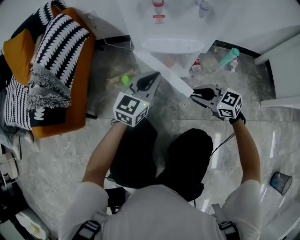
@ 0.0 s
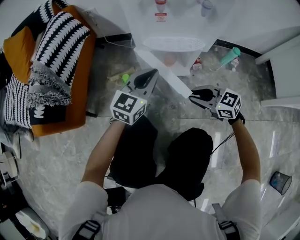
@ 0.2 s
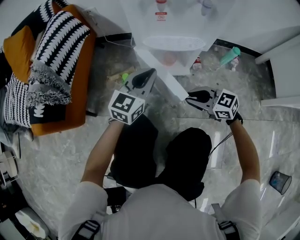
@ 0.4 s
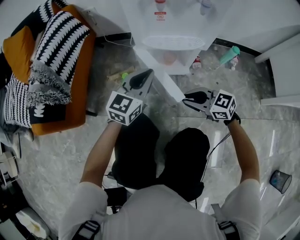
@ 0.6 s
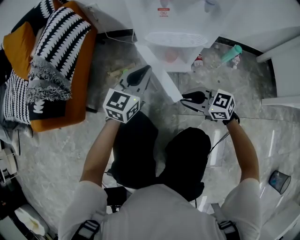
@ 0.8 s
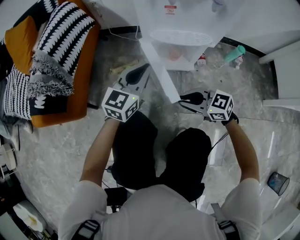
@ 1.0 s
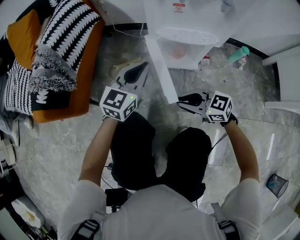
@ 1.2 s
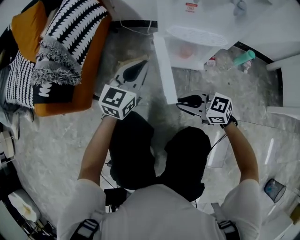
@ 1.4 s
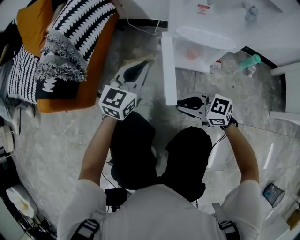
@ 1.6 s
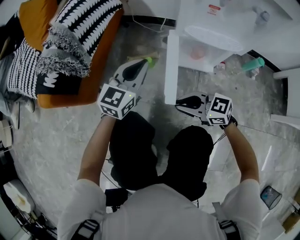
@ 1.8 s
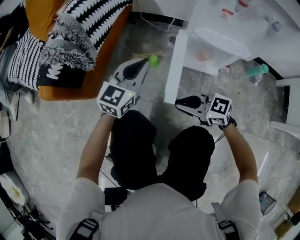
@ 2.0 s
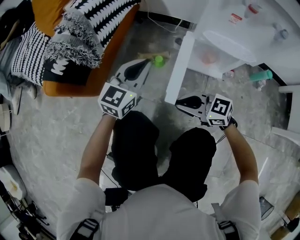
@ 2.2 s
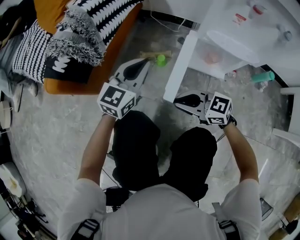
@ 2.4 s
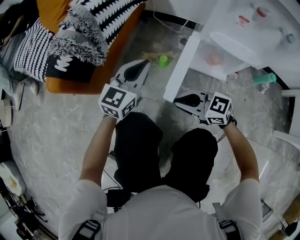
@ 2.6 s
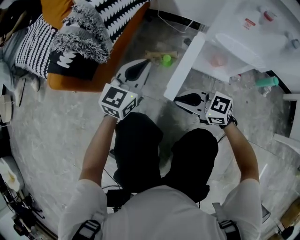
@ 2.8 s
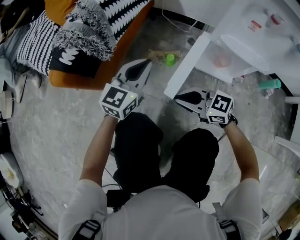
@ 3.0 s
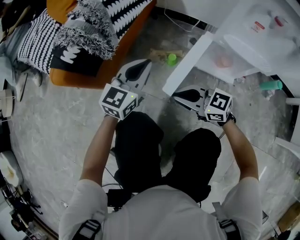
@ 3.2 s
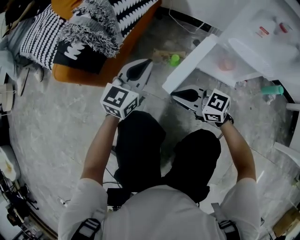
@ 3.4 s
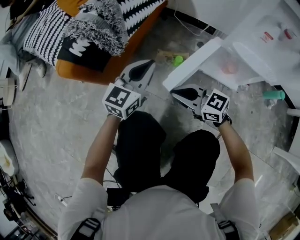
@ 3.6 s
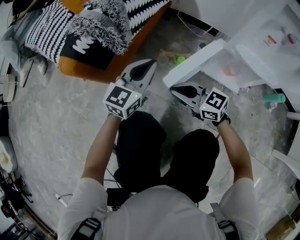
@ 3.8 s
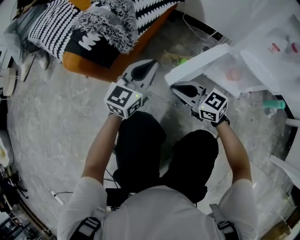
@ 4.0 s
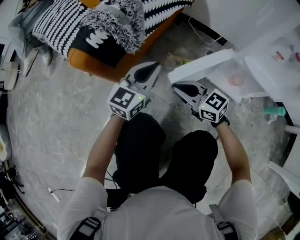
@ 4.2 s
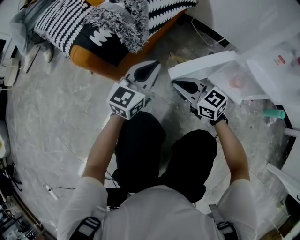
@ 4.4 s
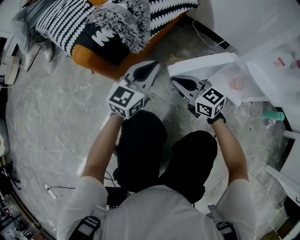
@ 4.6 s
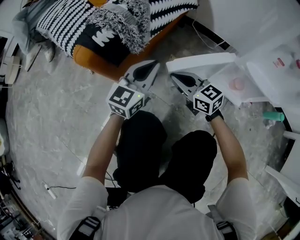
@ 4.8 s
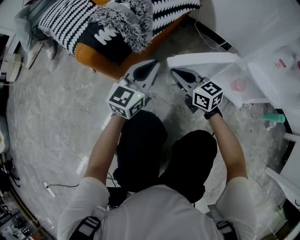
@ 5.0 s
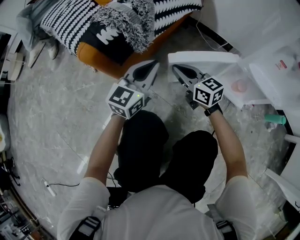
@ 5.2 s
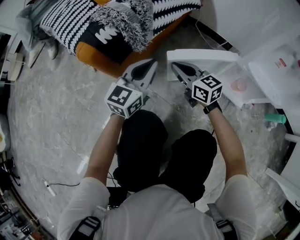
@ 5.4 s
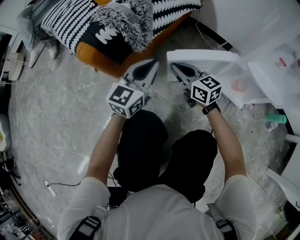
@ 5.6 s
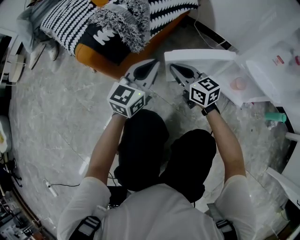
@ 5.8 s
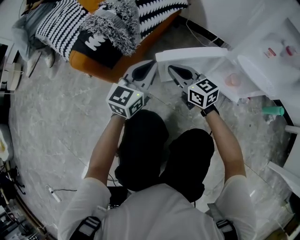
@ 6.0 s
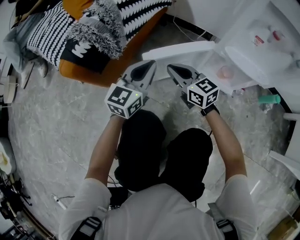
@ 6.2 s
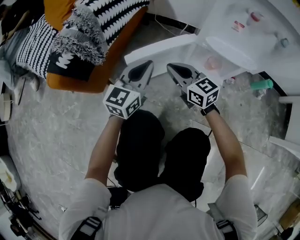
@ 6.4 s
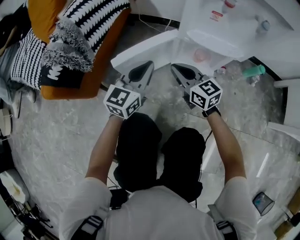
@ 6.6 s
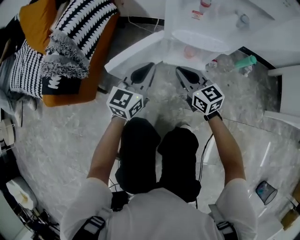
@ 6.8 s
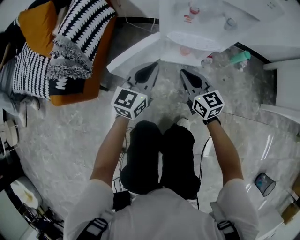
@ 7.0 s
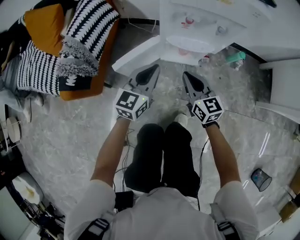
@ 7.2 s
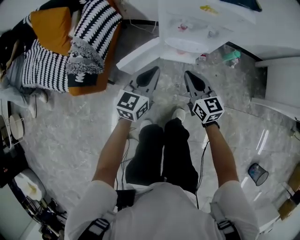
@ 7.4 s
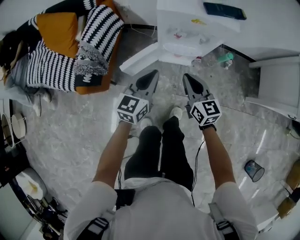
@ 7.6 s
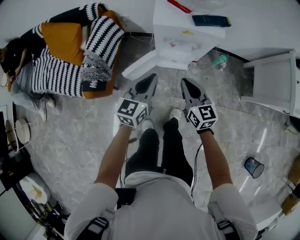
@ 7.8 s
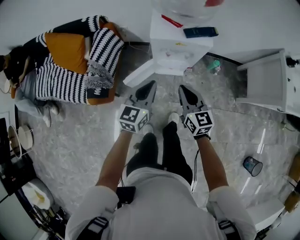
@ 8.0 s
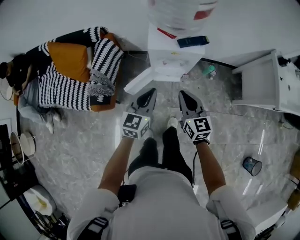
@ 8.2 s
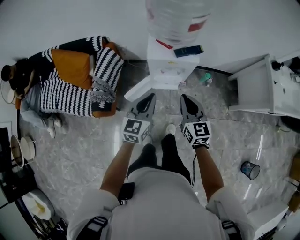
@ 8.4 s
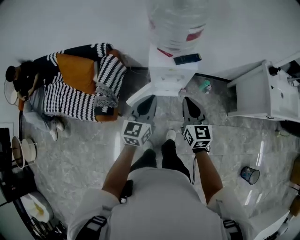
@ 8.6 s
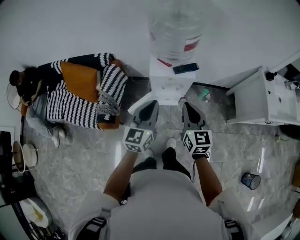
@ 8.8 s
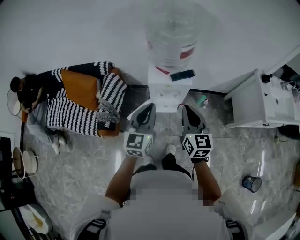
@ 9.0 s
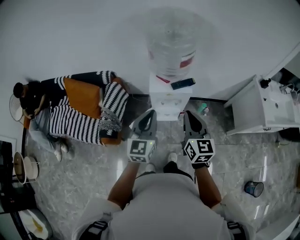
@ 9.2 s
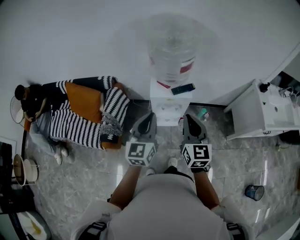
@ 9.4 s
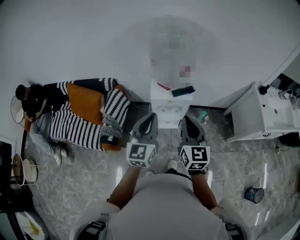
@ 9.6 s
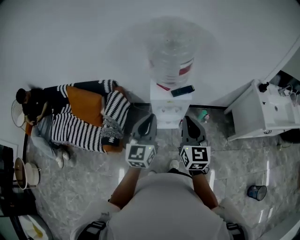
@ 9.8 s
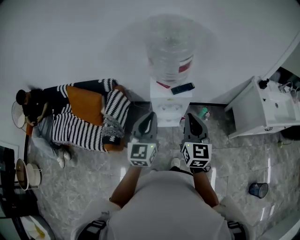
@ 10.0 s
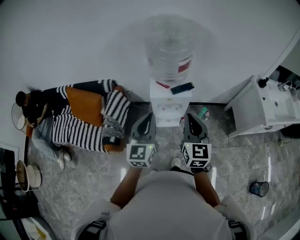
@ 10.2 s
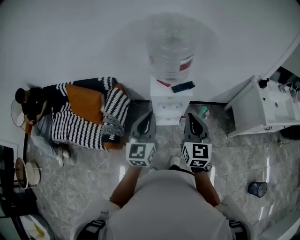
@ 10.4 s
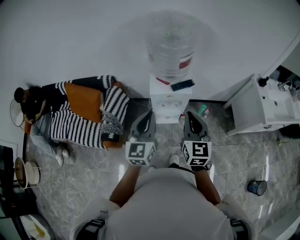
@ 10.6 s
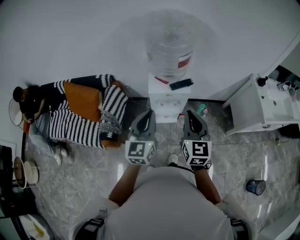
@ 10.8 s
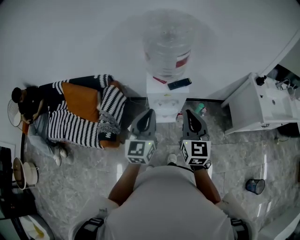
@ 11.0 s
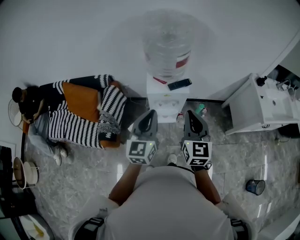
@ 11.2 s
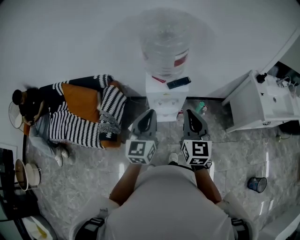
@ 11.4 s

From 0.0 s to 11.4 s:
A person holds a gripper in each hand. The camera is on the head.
From 0.0 s to 1.4 s: Both grippers travel together to the left, roughly 15 cm.
From 1.4 s to 2.8 s: The left gripper travels to the left by roughly 10 cm; the right gripper heads to the left and forward, covering roughly 10 cm.
From 2.8 s to 4.2 s: The left gripper travels to the left by roughly 5 cm. Meanwhile the right gripper travels forward and to the left by roughly 10 cm.
From 4.2 s to 5.6 s: The right gripper moves forward, about 10 cm.
From 5.6 s to 7.2 s: The left gripper shifts by approximately 30 cm, and changes its angle by some 30 degrees, while the right gripper changes place by roughly 35 cm, and turns by roughly 40 degrees.
From 7.2 s to 8.6 s: Both grippers travel together upward, about 50 cm. The right gripper rotates about 20 degrees.
From 8.6 s to 10.0 s: The grippers both shift upward by approximately 10 cm.
From 10.0 s to 11.4 s: The grippers move only a little.

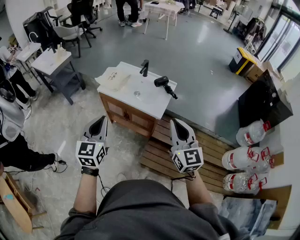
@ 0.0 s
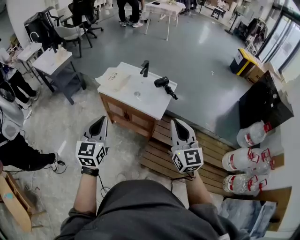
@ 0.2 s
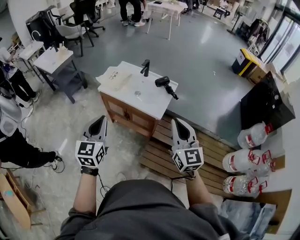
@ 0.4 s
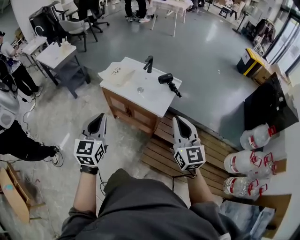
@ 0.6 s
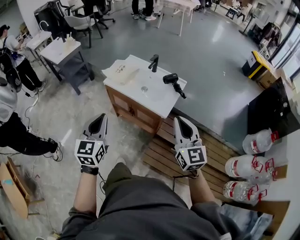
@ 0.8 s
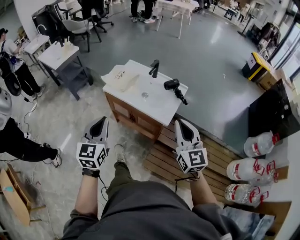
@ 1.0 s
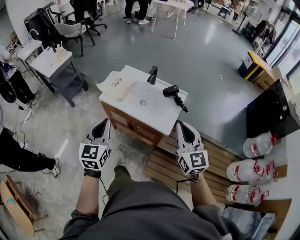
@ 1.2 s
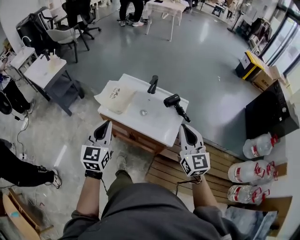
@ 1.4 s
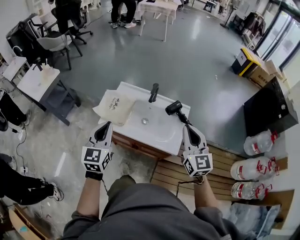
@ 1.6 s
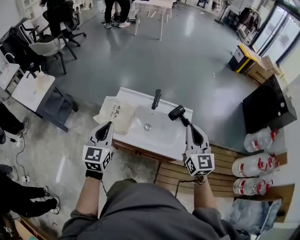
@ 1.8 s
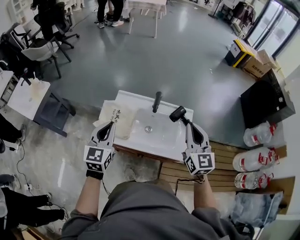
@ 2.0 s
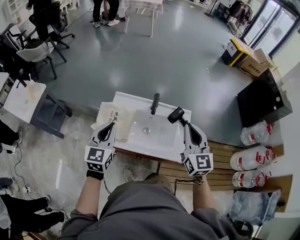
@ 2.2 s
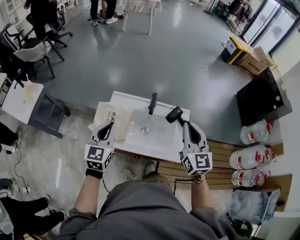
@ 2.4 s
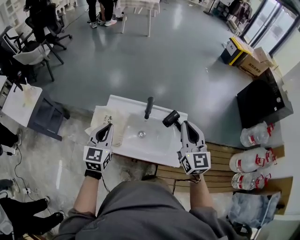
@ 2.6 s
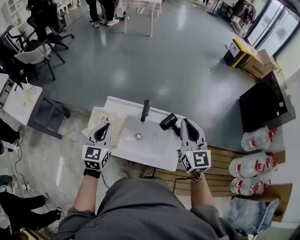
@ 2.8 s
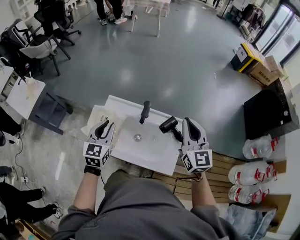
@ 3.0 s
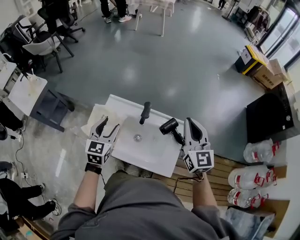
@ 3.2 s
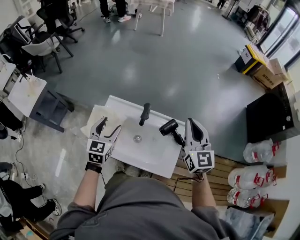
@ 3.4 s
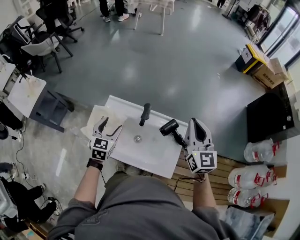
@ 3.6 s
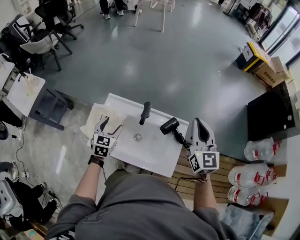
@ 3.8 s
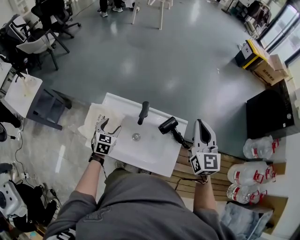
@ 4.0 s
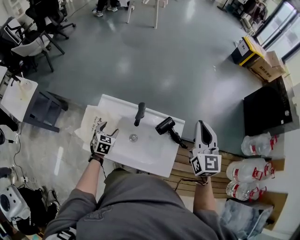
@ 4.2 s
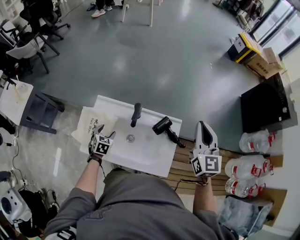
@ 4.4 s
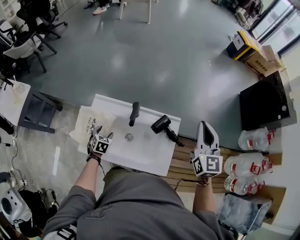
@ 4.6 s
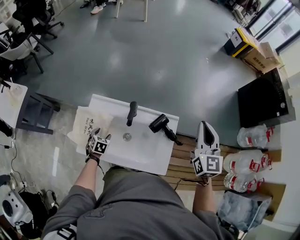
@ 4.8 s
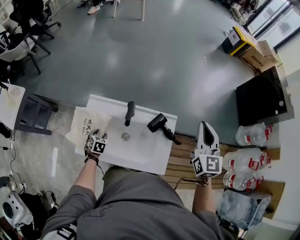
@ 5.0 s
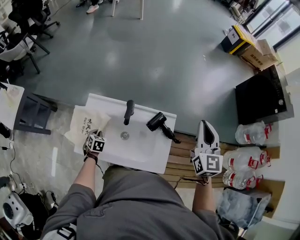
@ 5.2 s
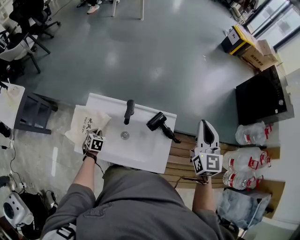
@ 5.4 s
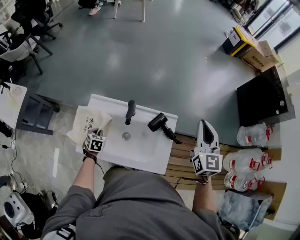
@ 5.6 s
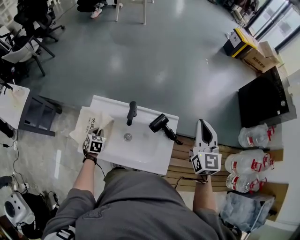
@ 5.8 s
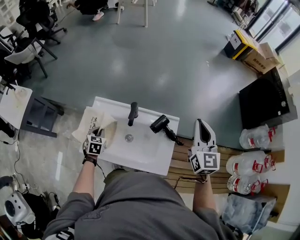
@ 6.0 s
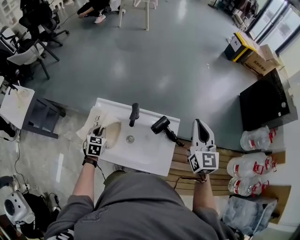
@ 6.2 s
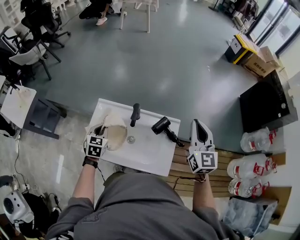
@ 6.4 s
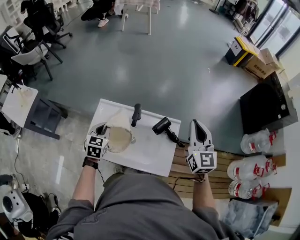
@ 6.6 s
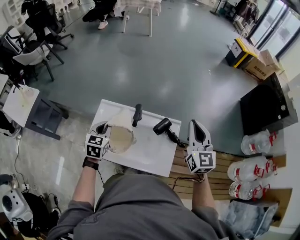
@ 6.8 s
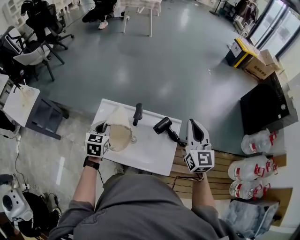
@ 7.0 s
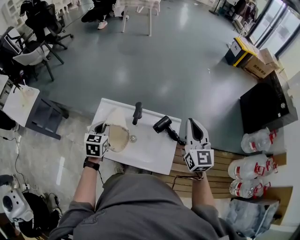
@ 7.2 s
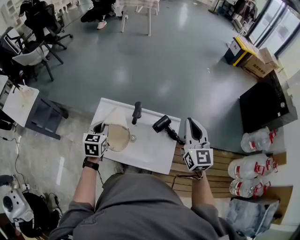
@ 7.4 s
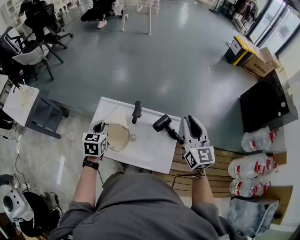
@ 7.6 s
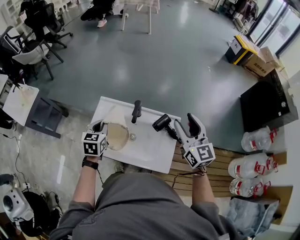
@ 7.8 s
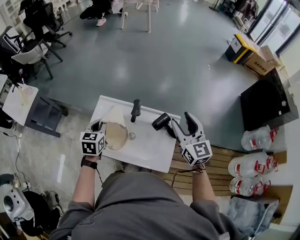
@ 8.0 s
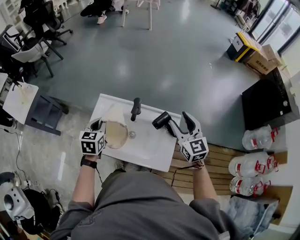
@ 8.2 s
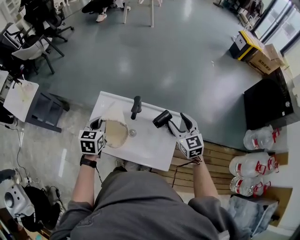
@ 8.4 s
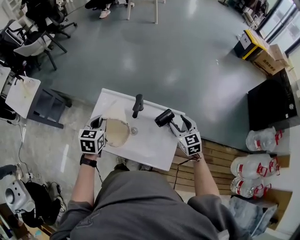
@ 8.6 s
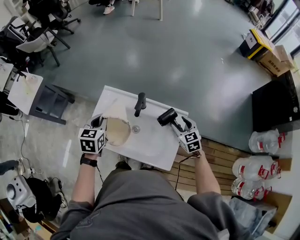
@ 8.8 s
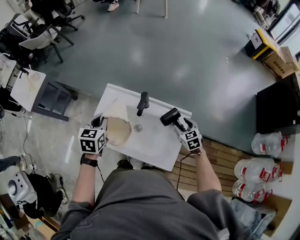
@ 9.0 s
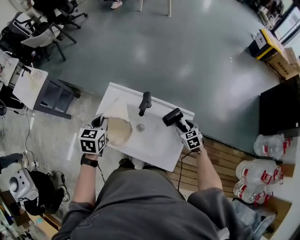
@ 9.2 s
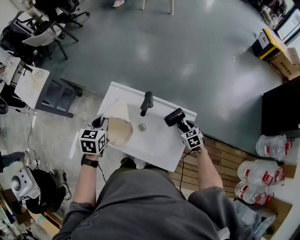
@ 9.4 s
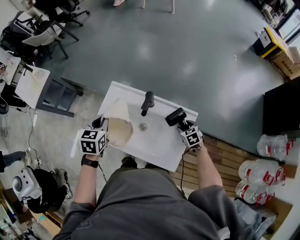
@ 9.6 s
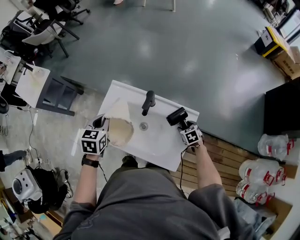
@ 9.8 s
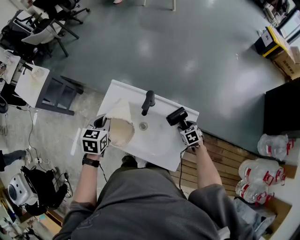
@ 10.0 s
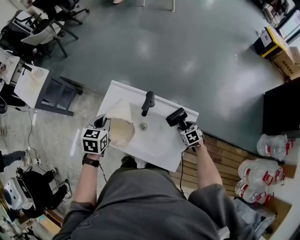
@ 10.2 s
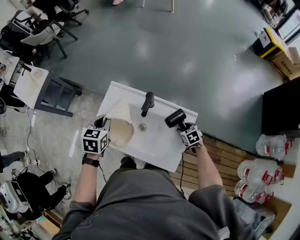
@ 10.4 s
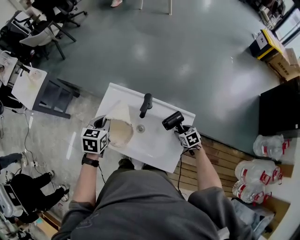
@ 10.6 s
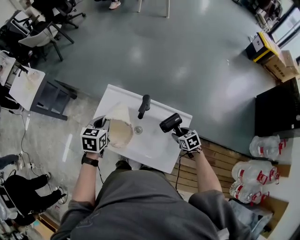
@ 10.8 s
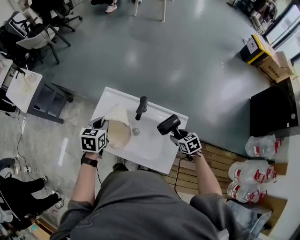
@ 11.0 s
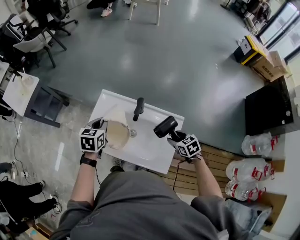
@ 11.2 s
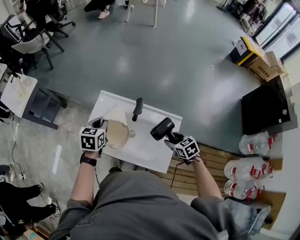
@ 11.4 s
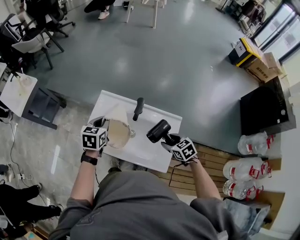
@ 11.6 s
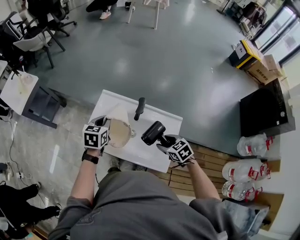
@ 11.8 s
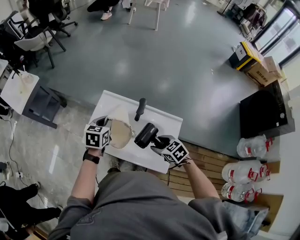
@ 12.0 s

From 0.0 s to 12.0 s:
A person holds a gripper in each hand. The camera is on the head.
From 0.0 s to 1.6 s: Both grippers move forward, some 30 cm.
From 1.6 s to 3.0 s: The two grippers go approximately 20 cm forward.
From 3.0 s to 4.4 s: The left gripper moves downward, some 25 cm, angles its fingers downward, by roughly 30 degrees, and opens, while the right gripper heads to the right, covering some 10 cm.
From 4.4 s to 6.0 s: The left gripper reaches roughly 5 cm downward, then returns, and closes up.
From 6.0 s to 7.6 s: The left gripper moves upward, about 15 cm. Meanwhile the right gripper goes about 5 cm to the left.
From 7.6 s to 9.0 s: The right gripper heads downward, covering some 30 cm, angles its fingers downward, by some 40 degrees, and opens its fingers.
From 9.0 s to 10.4 s: The right gripper shifts some 10 cm downward, and turns by some 20 degrees.
From 10.4 s to 12.0 s: The right gripper shifts some 20 cm upward and to the left.
